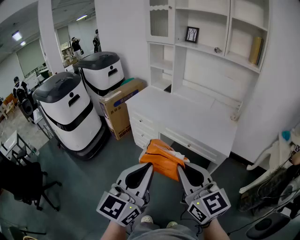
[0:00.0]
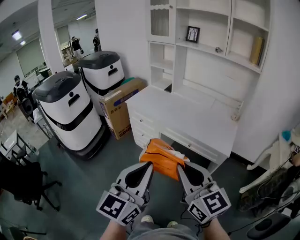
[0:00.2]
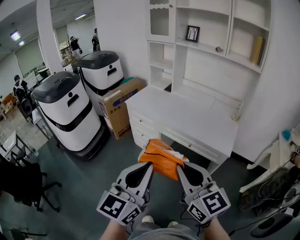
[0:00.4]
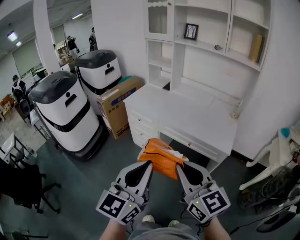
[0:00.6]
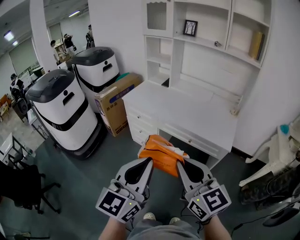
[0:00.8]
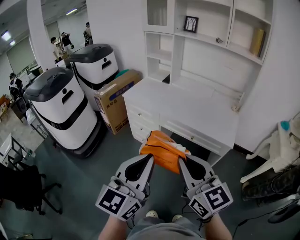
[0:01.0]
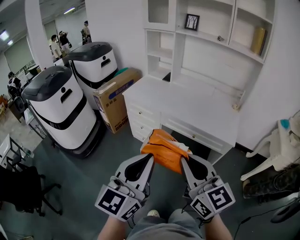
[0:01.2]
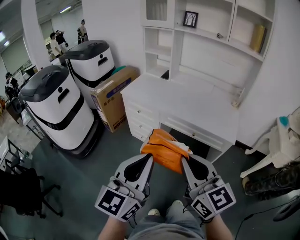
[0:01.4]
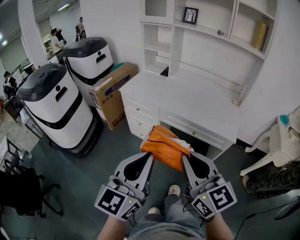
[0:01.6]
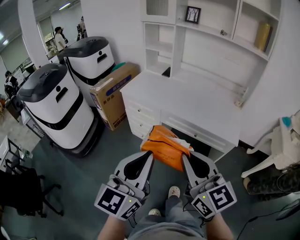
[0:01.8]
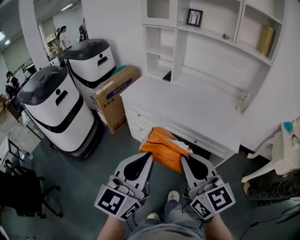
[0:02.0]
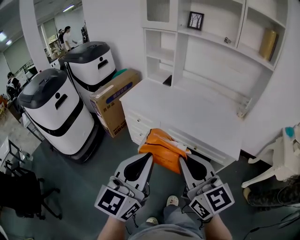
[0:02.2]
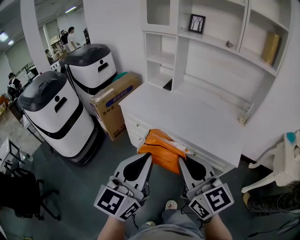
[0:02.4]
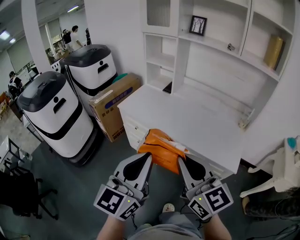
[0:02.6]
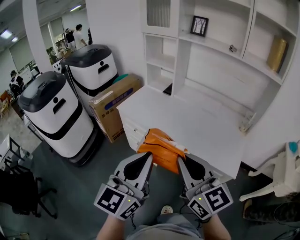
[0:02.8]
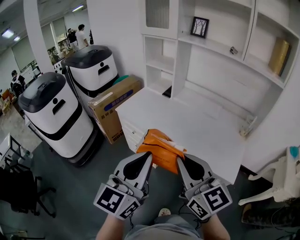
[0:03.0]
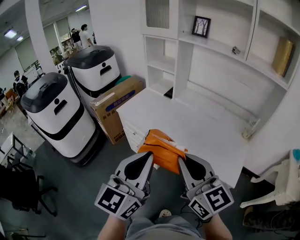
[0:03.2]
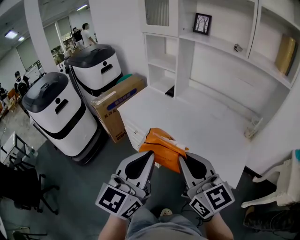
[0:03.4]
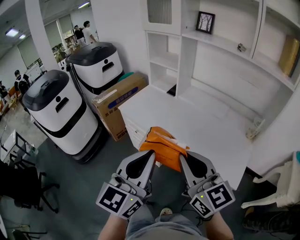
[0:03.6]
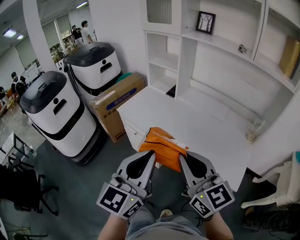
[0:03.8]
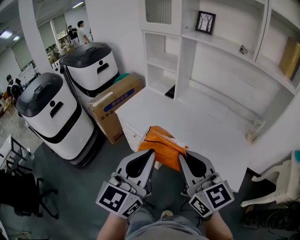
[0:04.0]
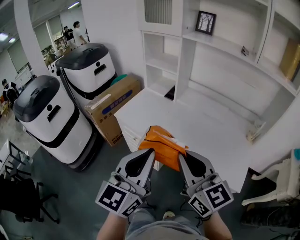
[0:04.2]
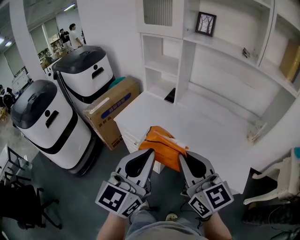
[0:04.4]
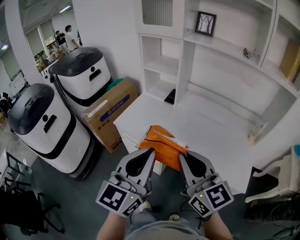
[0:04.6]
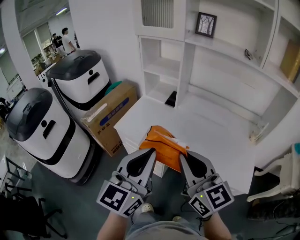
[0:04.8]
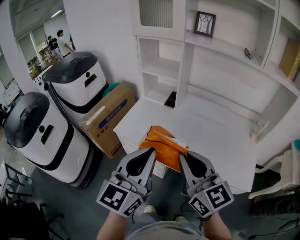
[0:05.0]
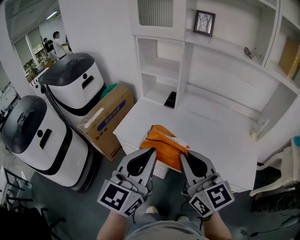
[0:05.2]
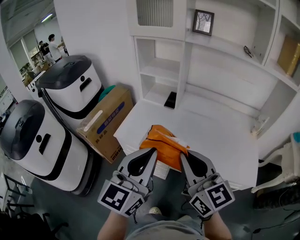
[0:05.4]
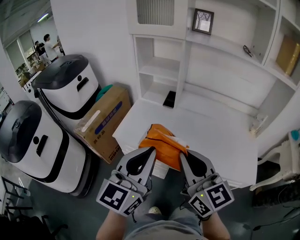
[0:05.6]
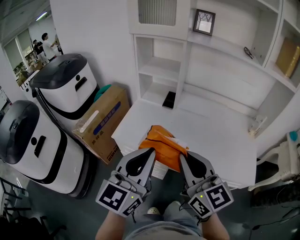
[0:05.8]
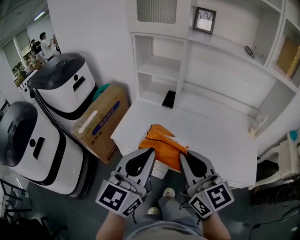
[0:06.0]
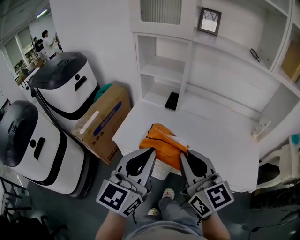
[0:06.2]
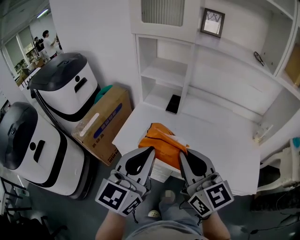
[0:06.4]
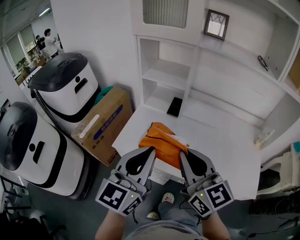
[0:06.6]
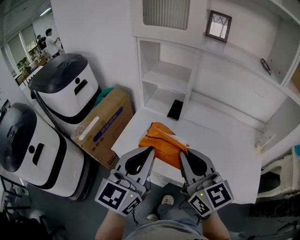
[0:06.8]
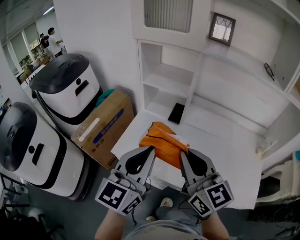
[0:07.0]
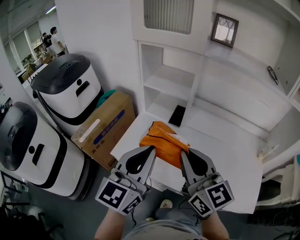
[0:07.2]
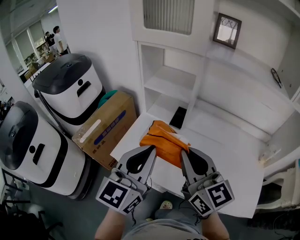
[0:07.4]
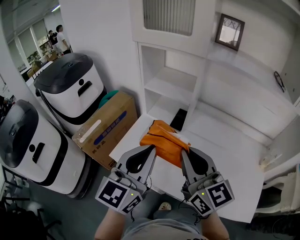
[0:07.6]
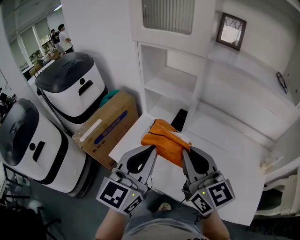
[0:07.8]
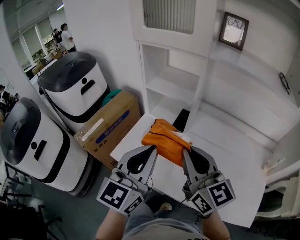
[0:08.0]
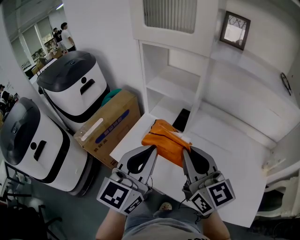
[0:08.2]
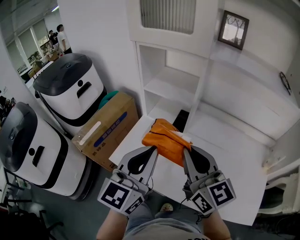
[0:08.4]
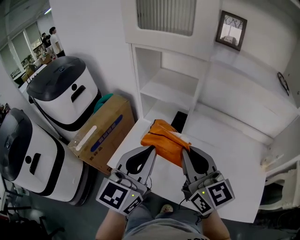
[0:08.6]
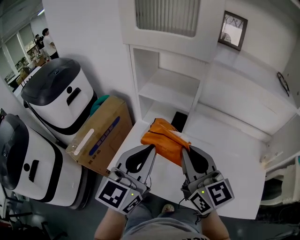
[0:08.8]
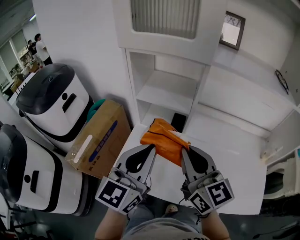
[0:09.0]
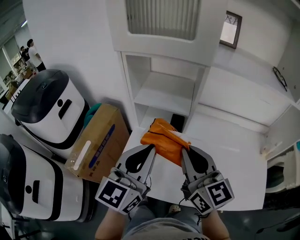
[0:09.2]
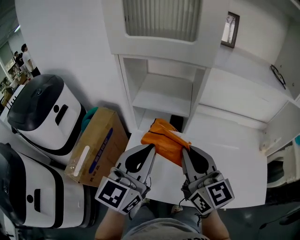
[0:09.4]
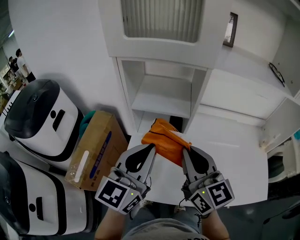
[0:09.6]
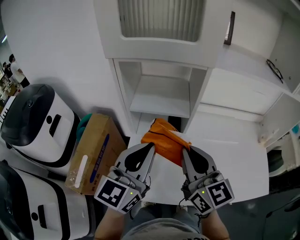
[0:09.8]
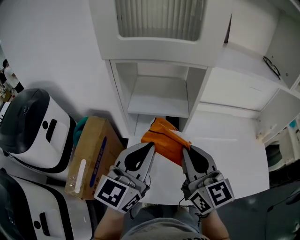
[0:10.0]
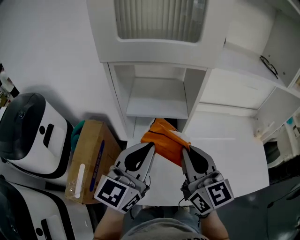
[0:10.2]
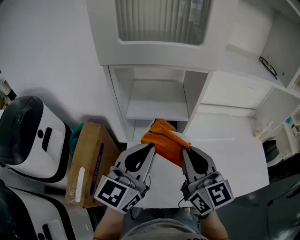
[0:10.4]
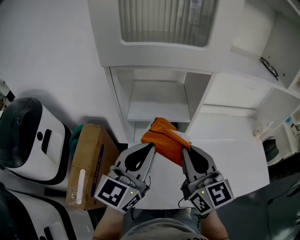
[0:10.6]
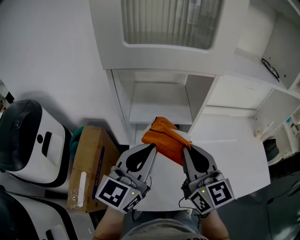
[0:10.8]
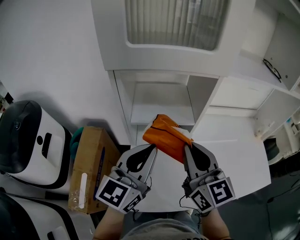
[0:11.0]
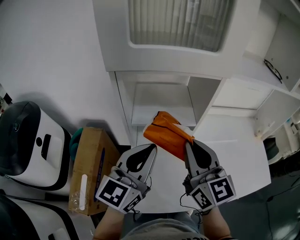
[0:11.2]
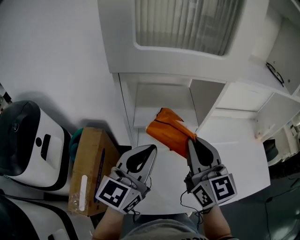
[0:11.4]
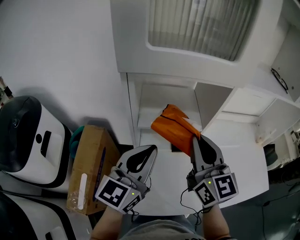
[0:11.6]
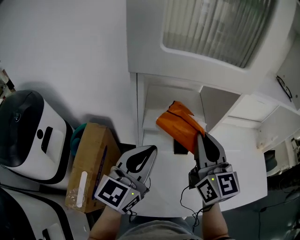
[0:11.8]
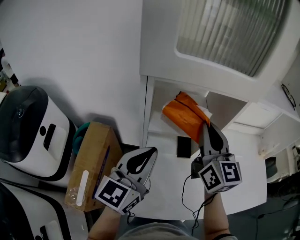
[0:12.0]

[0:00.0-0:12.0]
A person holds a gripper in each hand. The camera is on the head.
0.0 to 1.6 s: The left gripper is displaced to the left and forward by roughly 10 cm. Meanwhile the right gripper heads to the left, covering approximately 5 cm.
1.6 to 3.0 s: The two grippers go some 20 cm forward.
3.0 to 4.4 s: The two grippers go about 10 cm forward.
4.4 to 6.0 s: The right gripper travels to the left and forward by some 15 cm. The left gripper is displaced forward and to the left by about 15 cm.
6.0 to 7.6 s: Both grippers move forward, roughly 15 cm.
7.6 to 9.0 s: The grippers both shift forward by about 10 cm.
9.0 to 10.4 s: The right gripper travels to the left by some 5 cm, and rotates approximately 20 degrees. The left gripper moves forward and to the left, roughly 10 cm, and rotates roughly 20 degrees.
10.4 to 12.0 s: The right gripper goes roughly 15 cm forward. Meanwhile the left gripper heads to the left, covering about 10 cm.

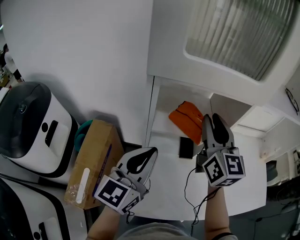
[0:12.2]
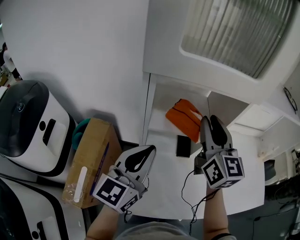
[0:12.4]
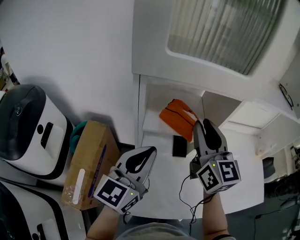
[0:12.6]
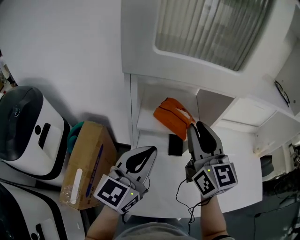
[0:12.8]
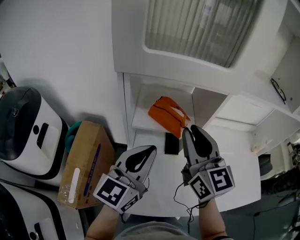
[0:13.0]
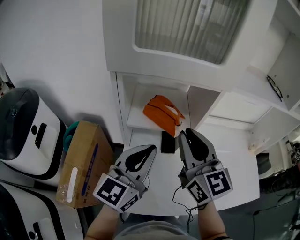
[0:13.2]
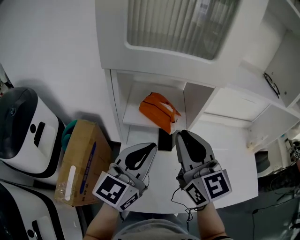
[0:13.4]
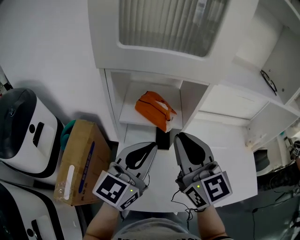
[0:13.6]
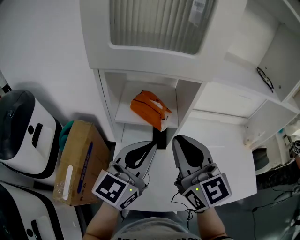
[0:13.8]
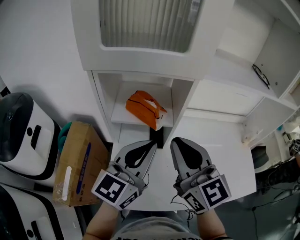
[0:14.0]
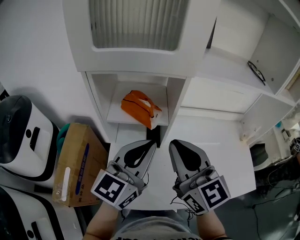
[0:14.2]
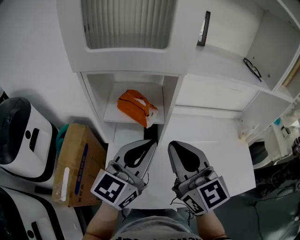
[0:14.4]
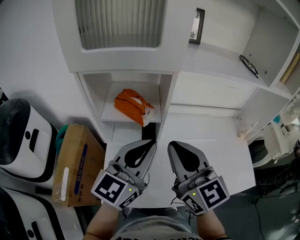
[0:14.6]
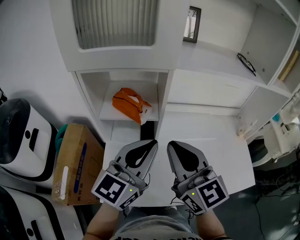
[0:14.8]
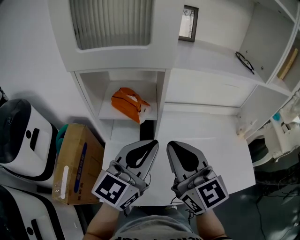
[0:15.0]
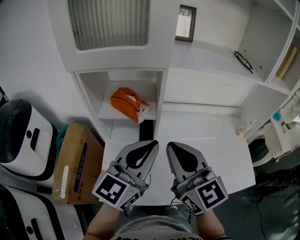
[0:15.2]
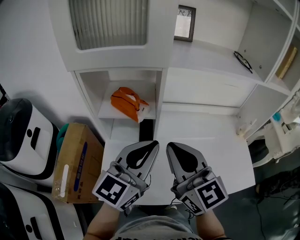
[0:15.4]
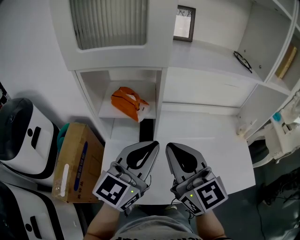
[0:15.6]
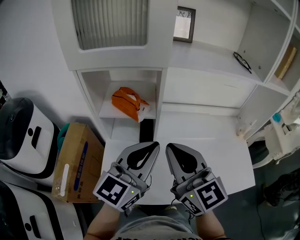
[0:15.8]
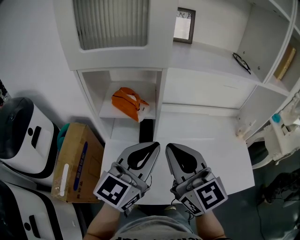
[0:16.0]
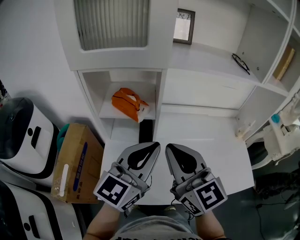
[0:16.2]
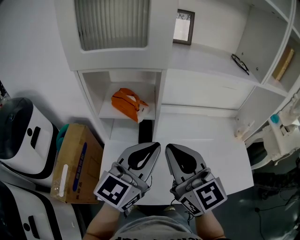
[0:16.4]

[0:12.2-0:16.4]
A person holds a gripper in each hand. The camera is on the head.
12.2 to 13.6 s: The left gripper travels to the right by approximately 10 cm. The right gripper travels backward by roughly 10 cm, and closes.
13.6 to 15.0 s: The right gripper is displaced to the right and backward by roughly 10 cm. Meanwhile the left gripper moves to the right, approximately 10 cm.
15.0 to 16.4 s: The grippers make only small movements.

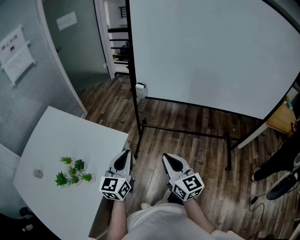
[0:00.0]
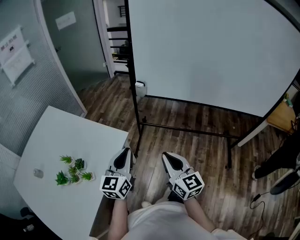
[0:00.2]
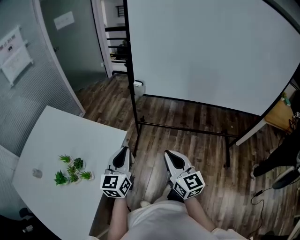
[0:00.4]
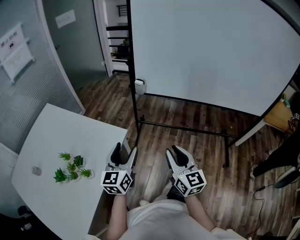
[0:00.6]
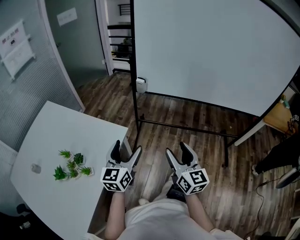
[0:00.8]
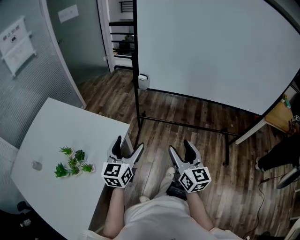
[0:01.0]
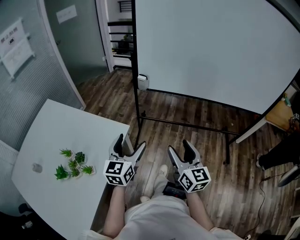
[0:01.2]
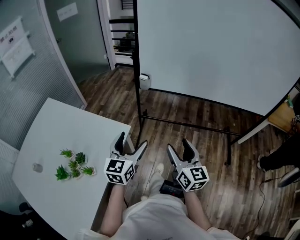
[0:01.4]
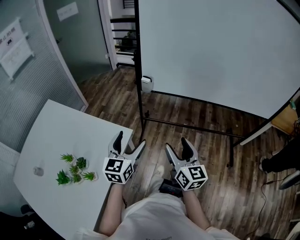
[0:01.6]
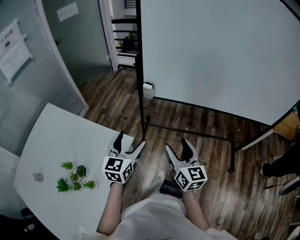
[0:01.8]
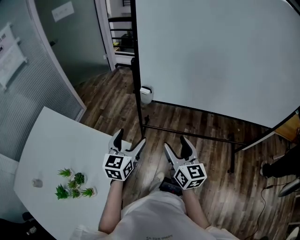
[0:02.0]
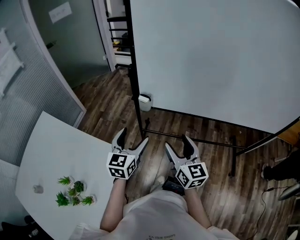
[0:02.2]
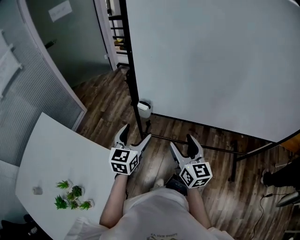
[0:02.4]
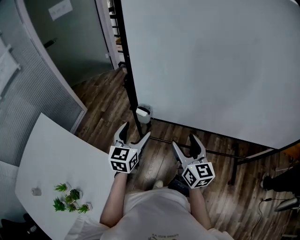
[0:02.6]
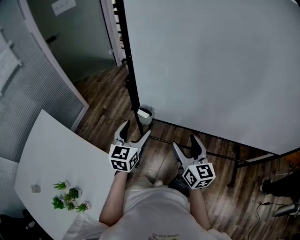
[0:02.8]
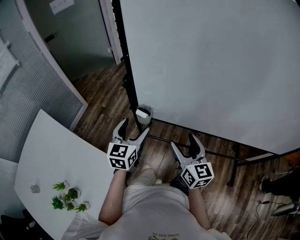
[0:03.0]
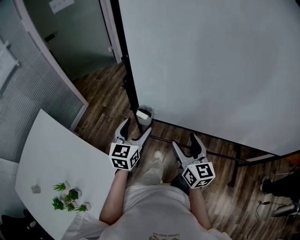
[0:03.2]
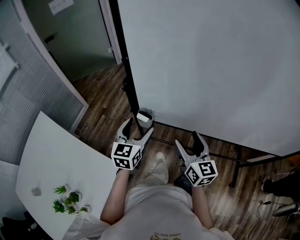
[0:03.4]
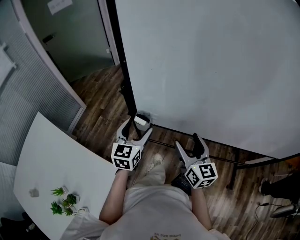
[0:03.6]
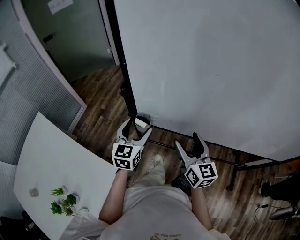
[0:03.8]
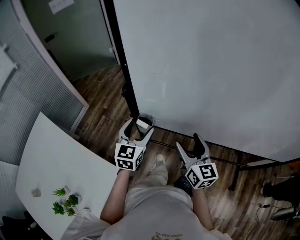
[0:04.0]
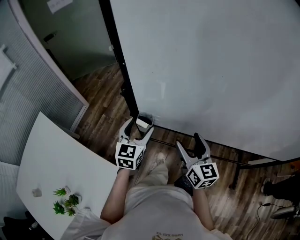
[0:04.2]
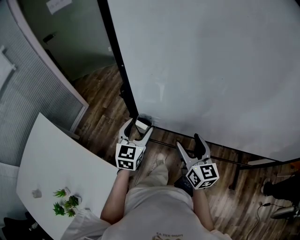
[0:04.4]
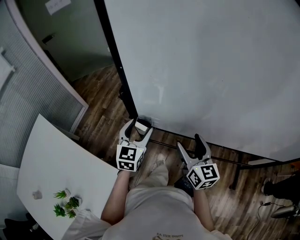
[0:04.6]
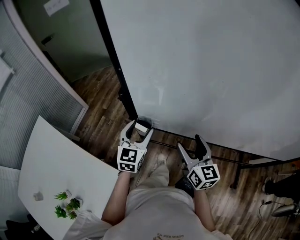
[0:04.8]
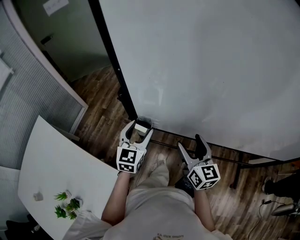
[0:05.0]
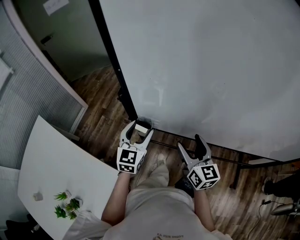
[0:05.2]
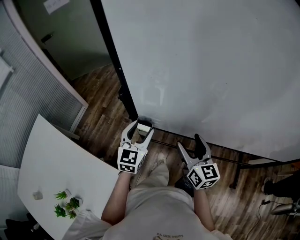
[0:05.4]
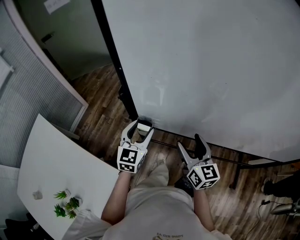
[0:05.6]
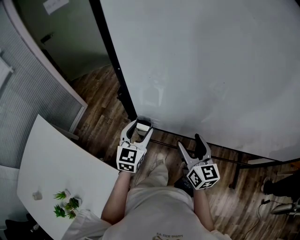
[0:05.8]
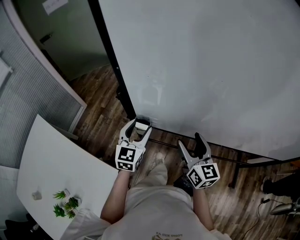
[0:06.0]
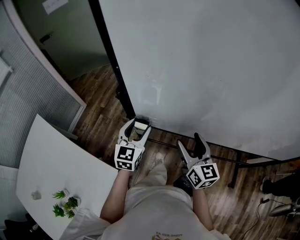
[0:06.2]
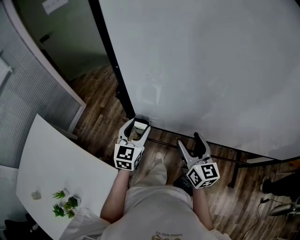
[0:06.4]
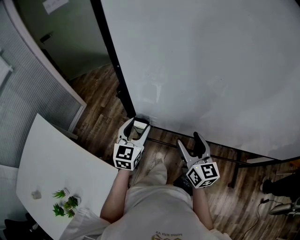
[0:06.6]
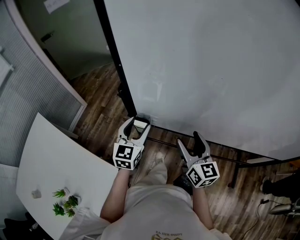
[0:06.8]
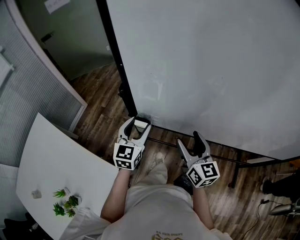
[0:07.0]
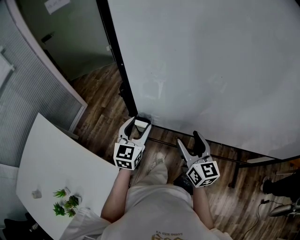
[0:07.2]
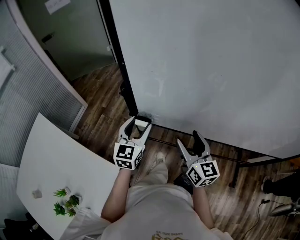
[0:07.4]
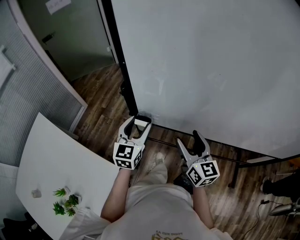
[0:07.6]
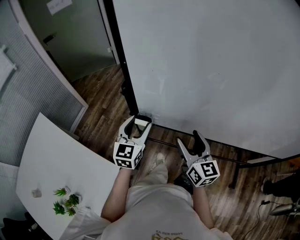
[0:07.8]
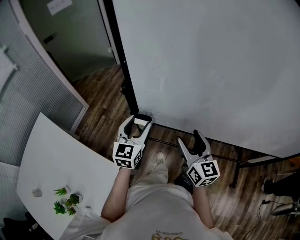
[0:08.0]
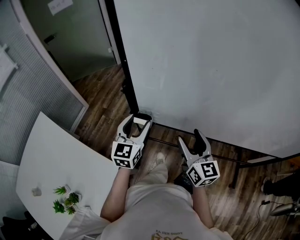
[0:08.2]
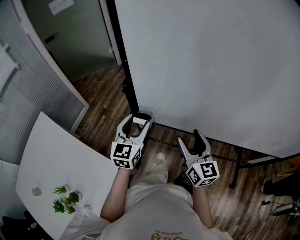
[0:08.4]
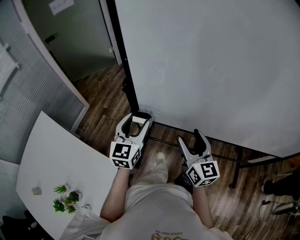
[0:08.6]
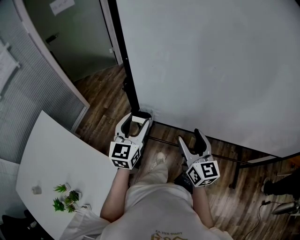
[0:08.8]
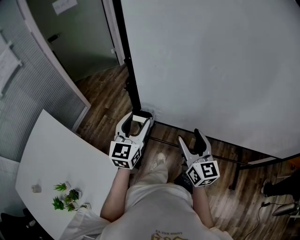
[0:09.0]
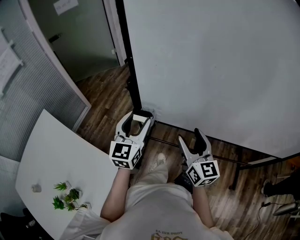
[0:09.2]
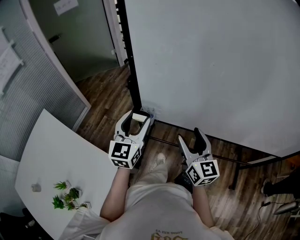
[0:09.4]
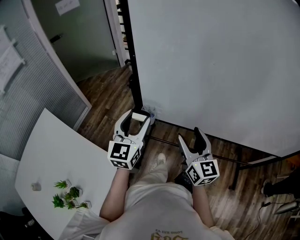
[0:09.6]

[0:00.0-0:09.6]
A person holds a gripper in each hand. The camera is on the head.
0.0 to 1.6 s: Both grippers move forward, about 10 cm. The left gripper opens. The right gripper opens.
1.6 to 3.2 s: Both grippers travel together forward, some 35 cm.
3.2 to 4.8 s: The two grippers go approximately 5 cm forward.
4.8 to 6.4 s: Both grippers stay about where they are.
6.4 to 8.0 s: The grippers make only small movements.
8.0 to 9.6 s: The left gripper shifts some 10 cm upward and backward, while the right gripper changes place by roughly 5 cm.
